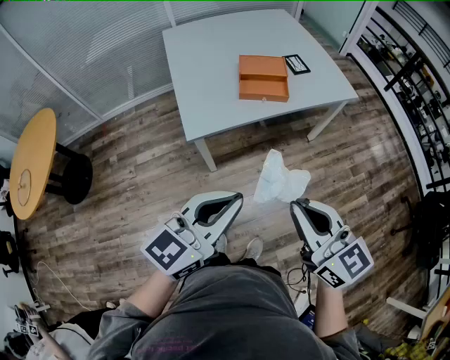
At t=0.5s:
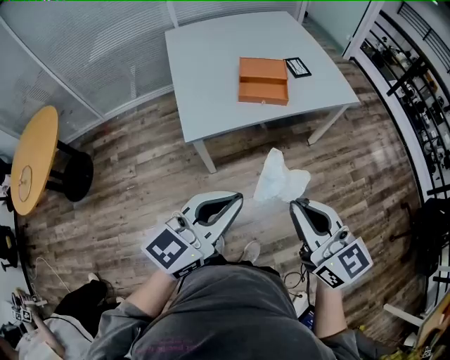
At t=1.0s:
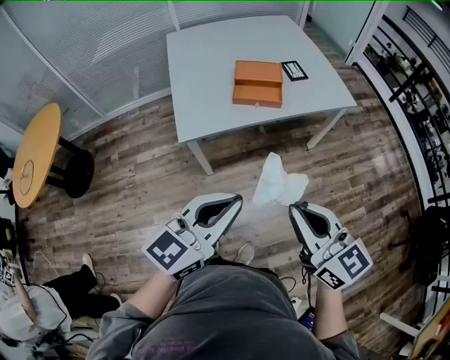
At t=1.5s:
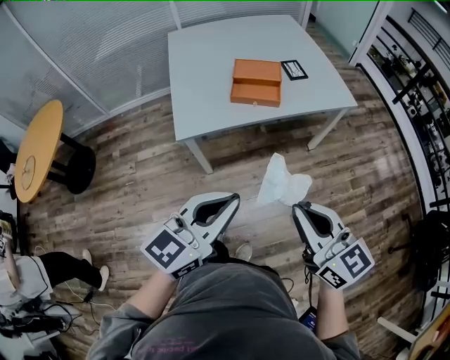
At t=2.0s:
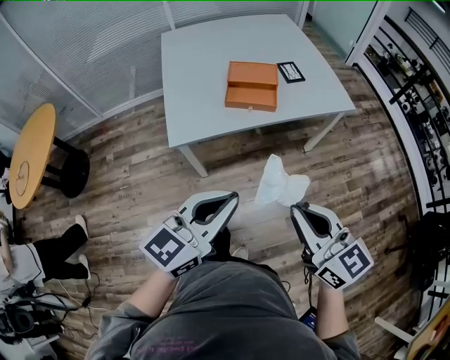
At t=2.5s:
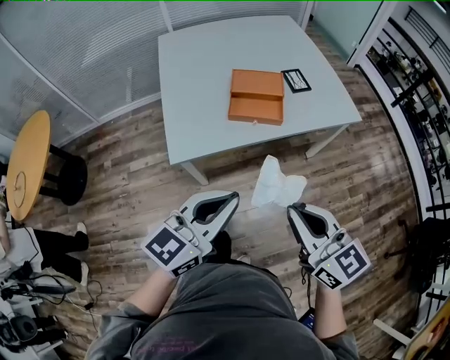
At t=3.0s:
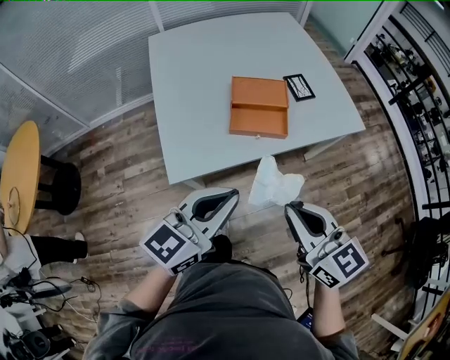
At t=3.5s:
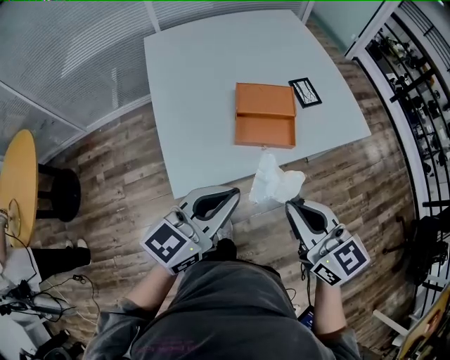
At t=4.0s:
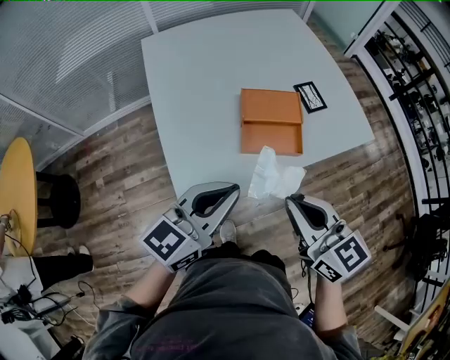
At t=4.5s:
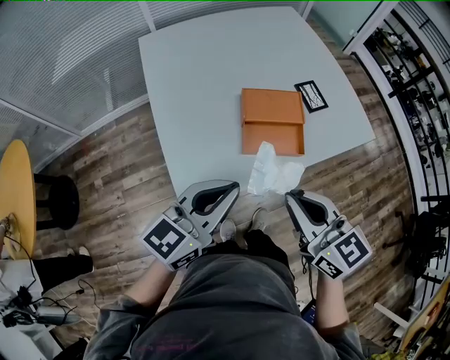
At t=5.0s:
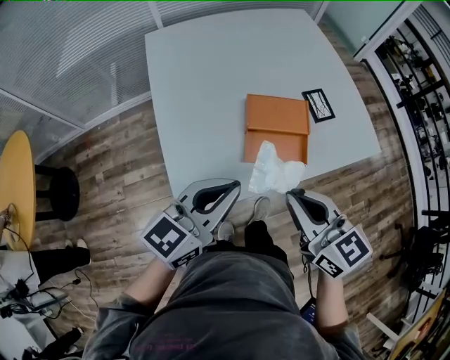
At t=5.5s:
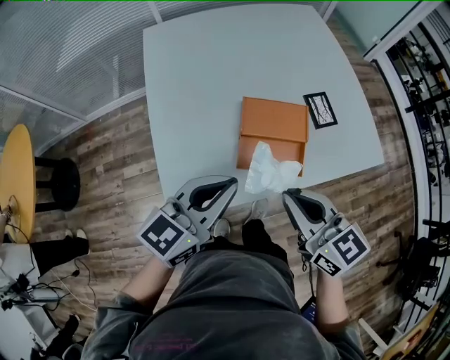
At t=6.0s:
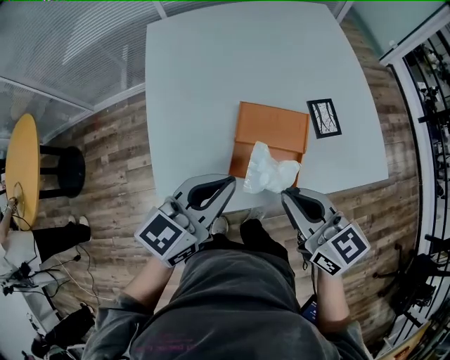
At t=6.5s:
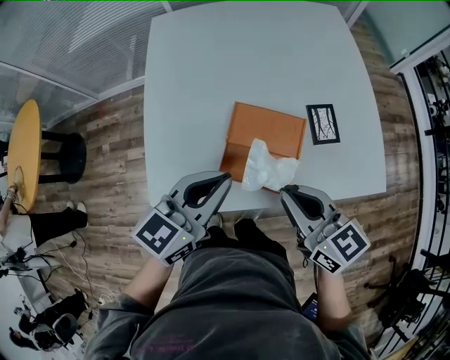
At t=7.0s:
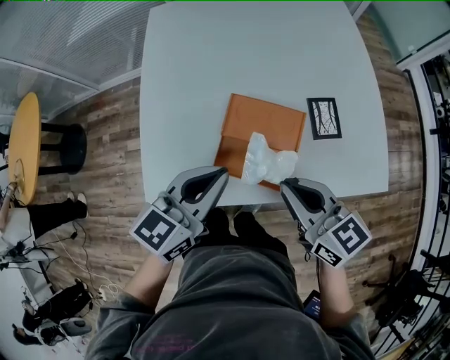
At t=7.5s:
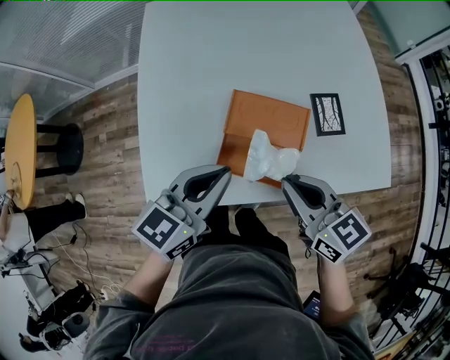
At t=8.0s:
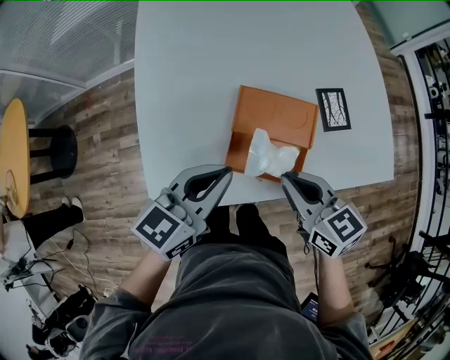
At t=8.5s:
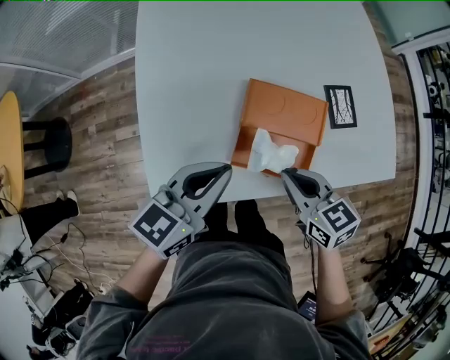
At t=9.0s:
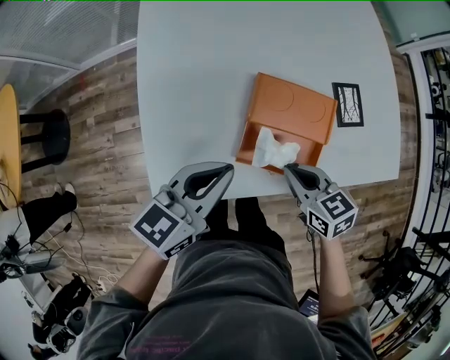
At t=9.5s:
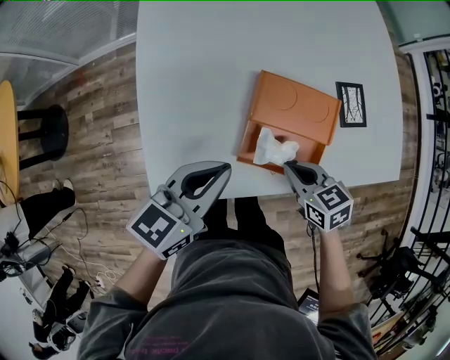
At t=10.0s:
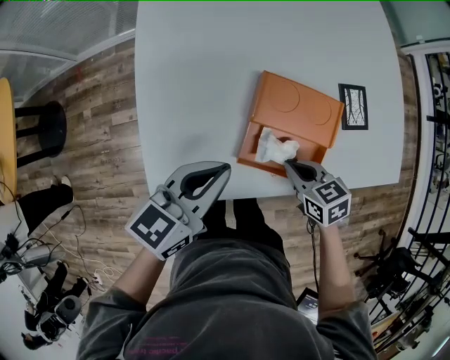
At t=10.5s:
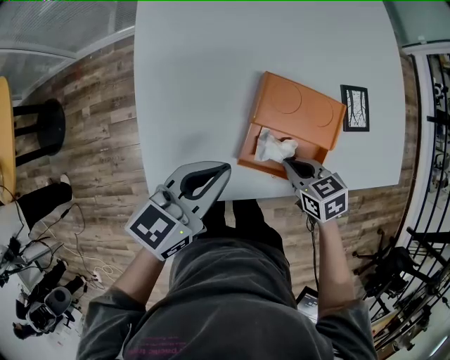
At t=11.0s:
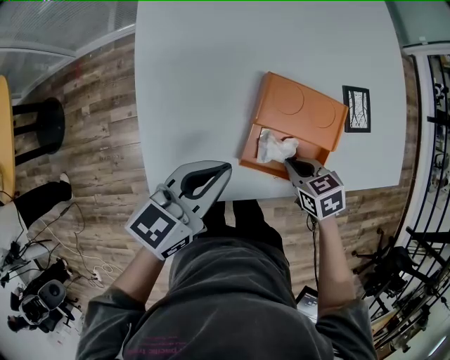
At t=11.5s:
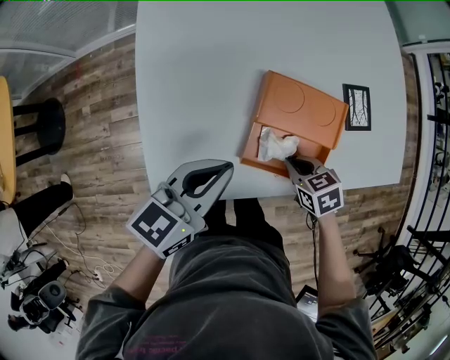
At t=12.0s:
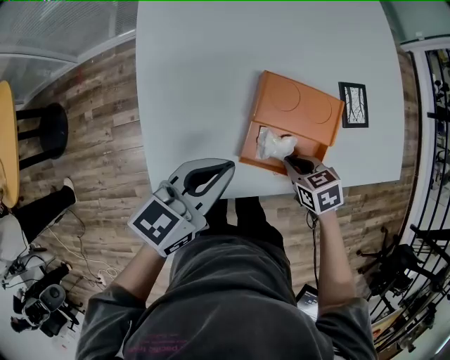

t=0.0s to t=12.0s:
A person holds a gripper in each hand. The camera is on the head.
t=0.0s to t=2.0s: Both grippers travel together to the right and forward, about 10 cm.
t=2.0s to t=4.0s: Both grippers travel together forward and to the left, approximately 35 cm.
t=4.0s to t=6.0s: The grippers both shift forward and to the right by roughly 20 cm.
t=6.0s to t=8.0s: Both grippers move downward, roughly 5 cm.
t=8.0s to t=10.0s: The right gripper is displaced downward by roughly 15 cm, and turns by roughly 20 degrees. The left gripper moves to the left, some 5 cm.
t=10.0s to t=12.0s: The grippers make only small movements.

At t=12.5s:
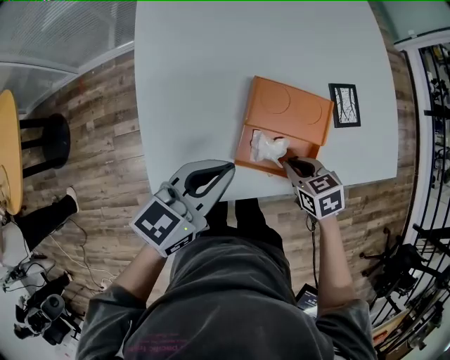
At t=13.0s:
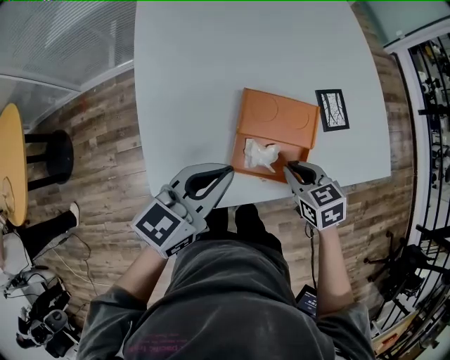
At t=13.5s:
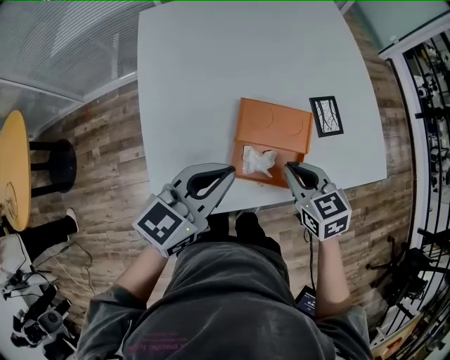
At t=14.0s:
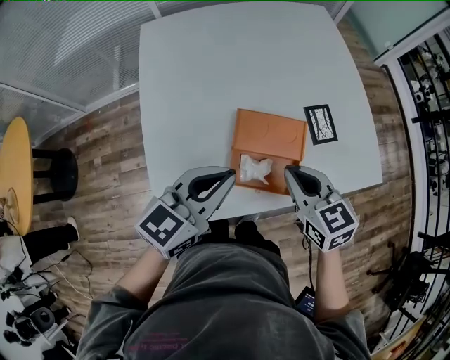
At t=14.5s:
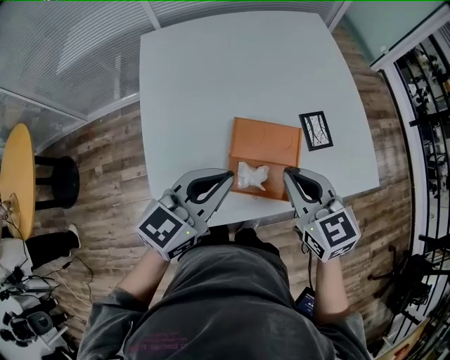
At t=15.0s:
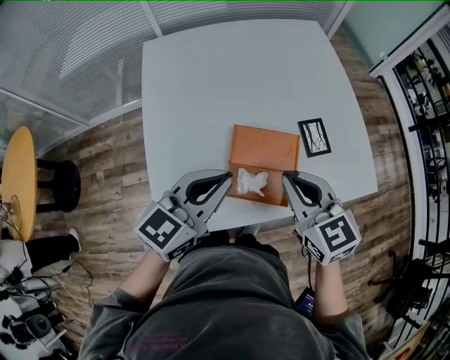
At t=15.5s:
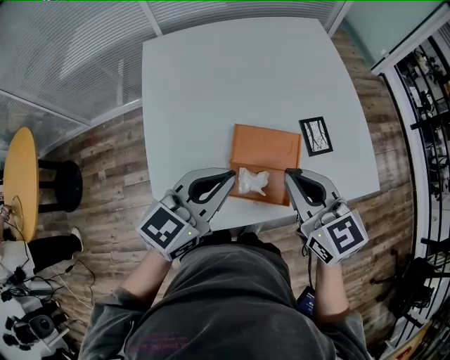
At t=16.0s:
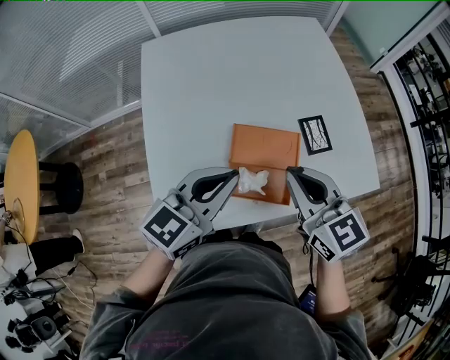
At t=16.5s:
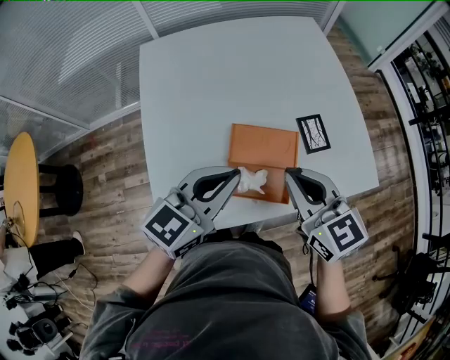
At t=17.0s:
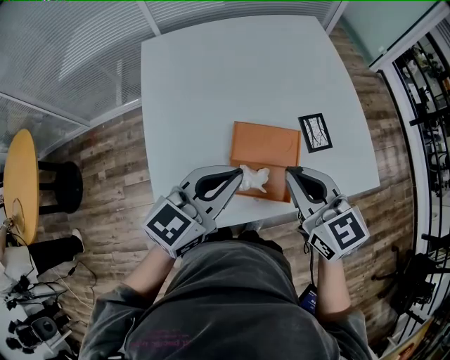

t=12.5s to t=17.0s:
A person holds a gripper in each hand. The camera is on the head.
t=12.5s to t=14.5s: The right gripper shifts roughly 25 cm upward, and angles its fingers upward, by some 30 degrees, while the left gripper travels upward by about 10 cm.
t=14.5s to t=17.0s: There are only small adjustments of the grippers.

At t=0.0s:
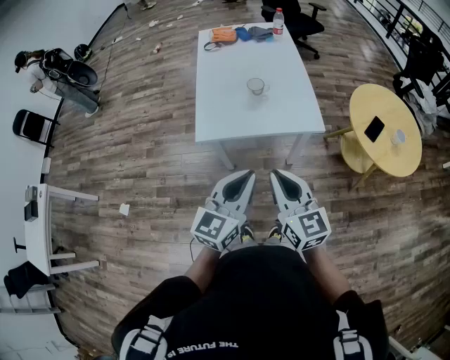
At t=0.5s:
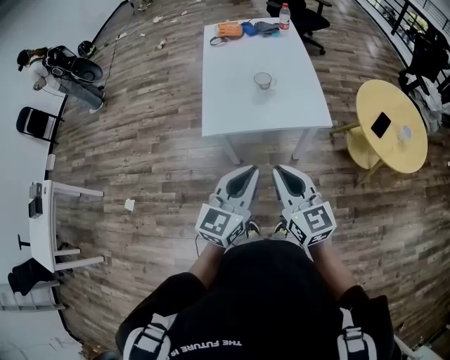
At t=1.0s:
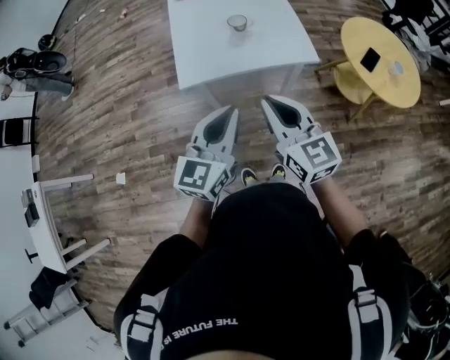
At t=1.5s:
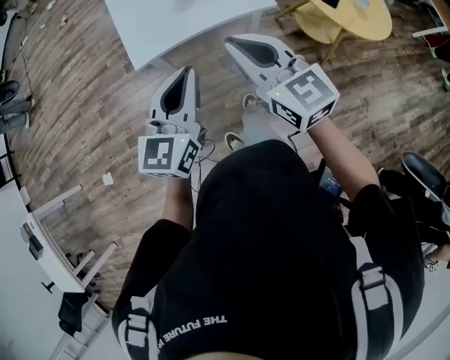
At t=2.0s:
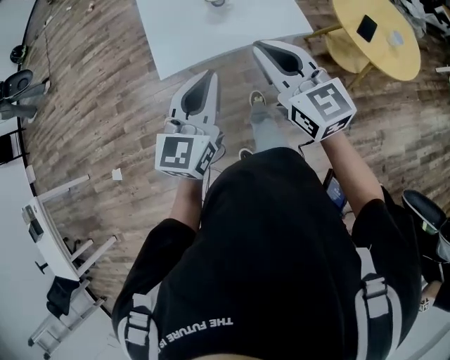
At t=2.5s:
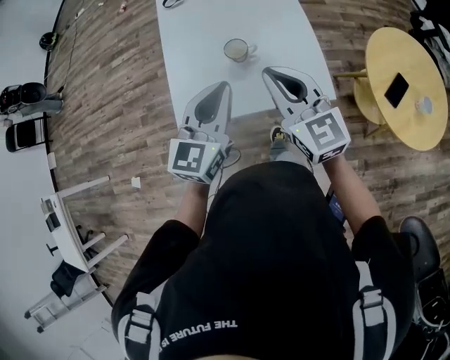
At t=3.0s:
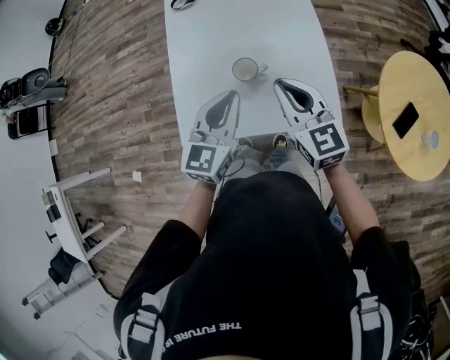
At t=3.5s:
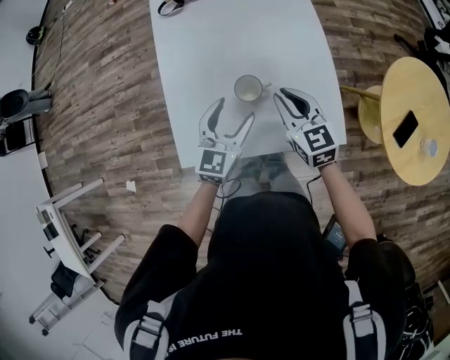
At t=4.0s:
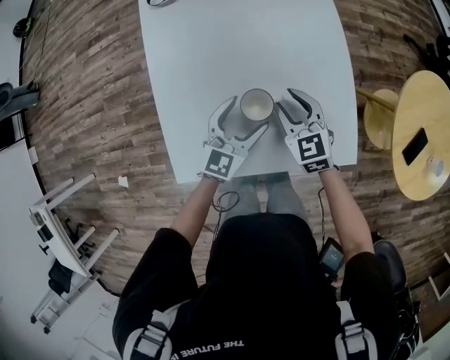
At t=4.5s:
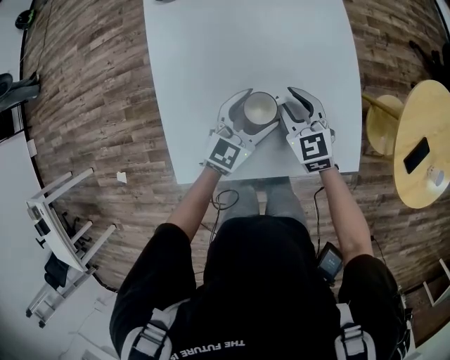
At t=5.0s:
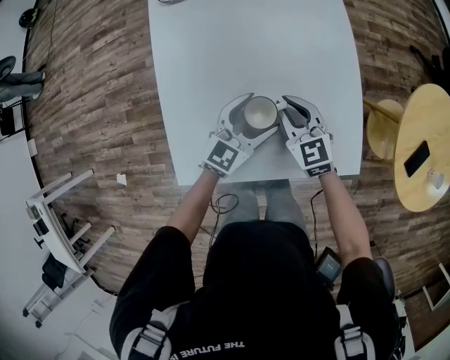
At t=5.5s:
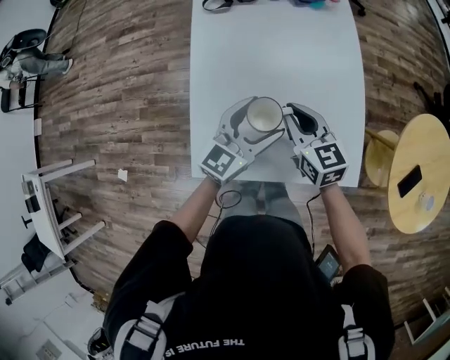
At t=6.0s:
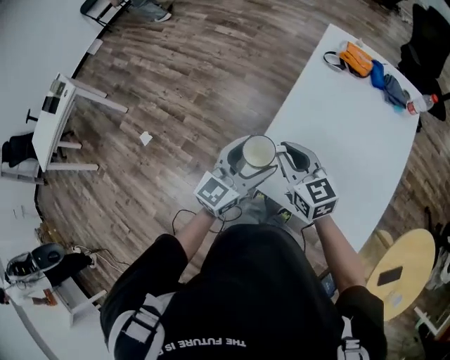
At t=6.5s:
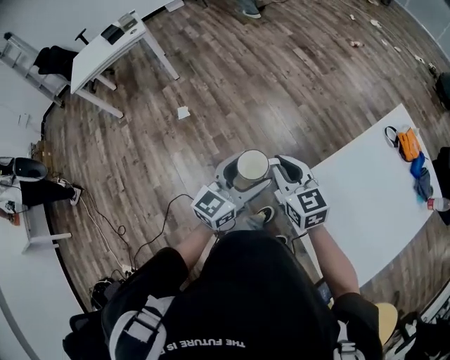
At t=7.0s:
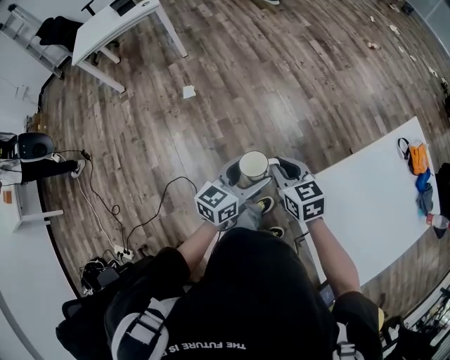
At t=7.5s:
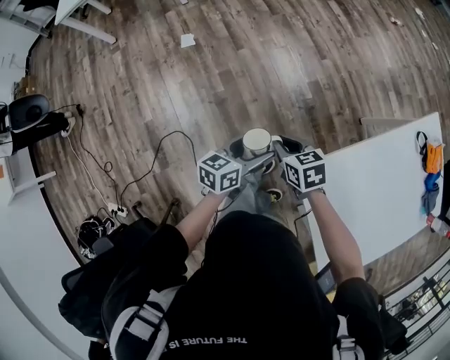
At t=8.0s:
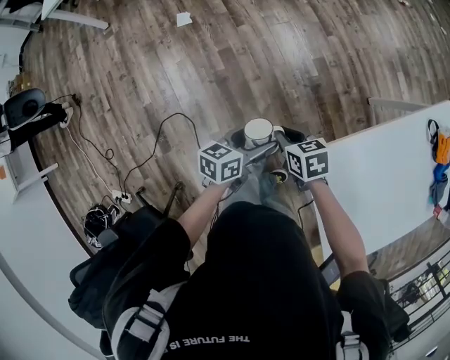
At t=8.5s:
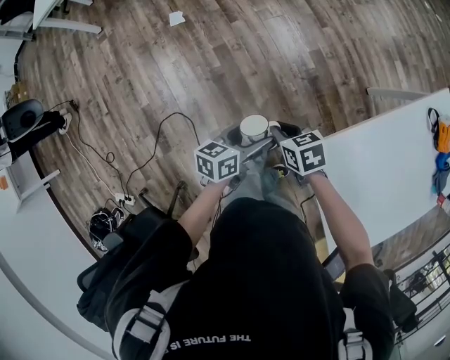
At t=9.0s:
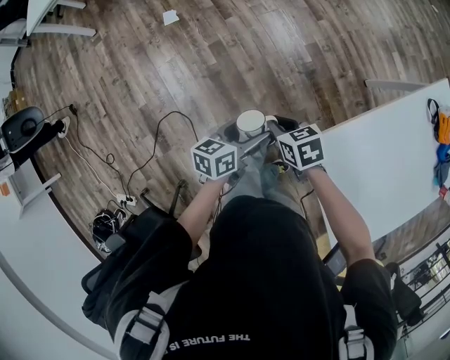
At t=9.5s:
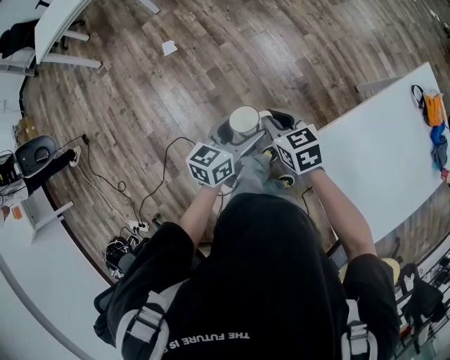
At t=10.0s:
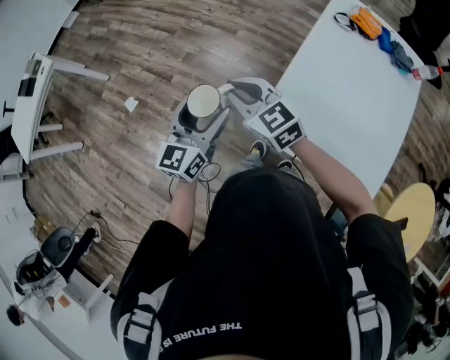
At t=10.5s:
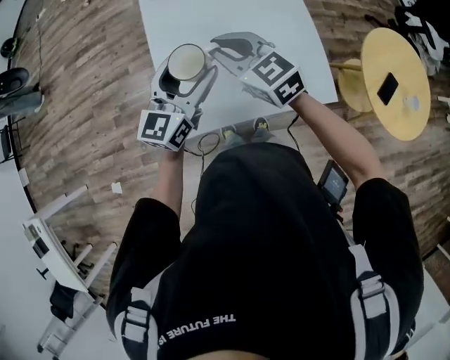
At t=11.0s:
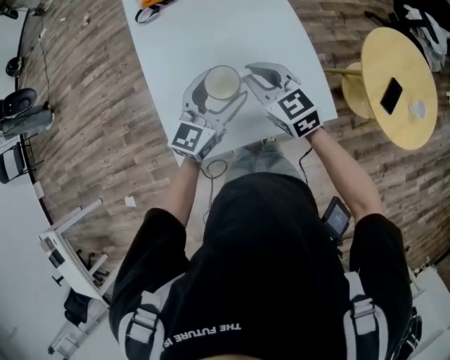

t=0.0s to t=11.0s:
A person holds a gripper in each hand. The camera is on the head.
t=0.0s to t=2.0s: The grippers both shift forward by approximately 10 cm.
t=2.0s to t=3.5s: The grippers both shift forward and downward by some 40 cm. The left gripper opens up.
t=3.5s to t=5.5s: The right gripper moves to the left, about 10 cm, reaches roughly 10 cm downward, then returns, and opens, then closes once more. The left gripper goes downward and returns, approximately 10 cm each way.
t=5.5s to t=7.5s: The pair of grippers is taken about 50 cm. The left gripper rotates approximately 80 degrees. Meanwhile the right gripper swivels about 80 degrees.
t=7.5s to t=9.0s: Both grippers travel together downward, about 5 cm.
t=9.0s to t=11.0s: The pair of grippers is taken approximately 60 cm. The right gripper rotates about 80 degrees. Meanwhile the left gripper turns by roughly 90 degrees.
